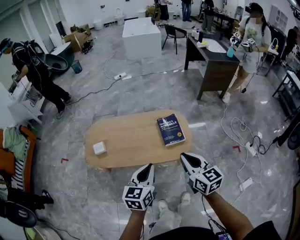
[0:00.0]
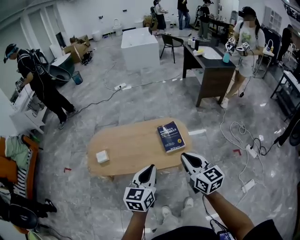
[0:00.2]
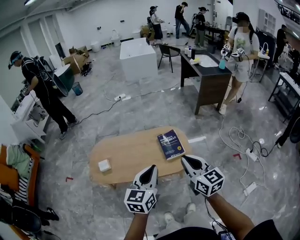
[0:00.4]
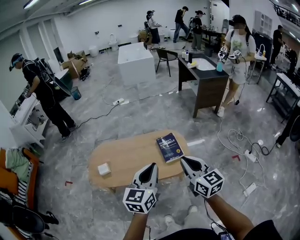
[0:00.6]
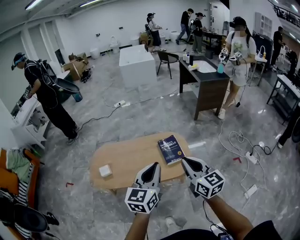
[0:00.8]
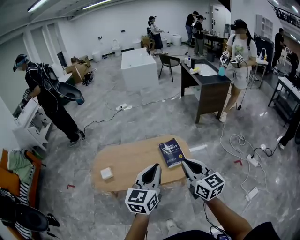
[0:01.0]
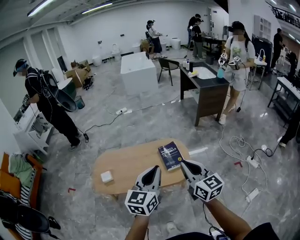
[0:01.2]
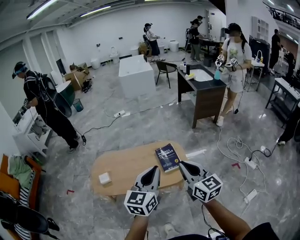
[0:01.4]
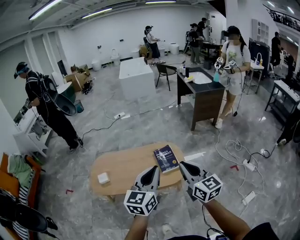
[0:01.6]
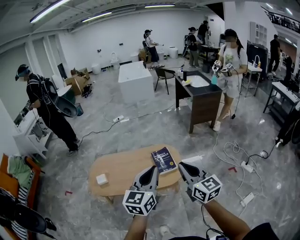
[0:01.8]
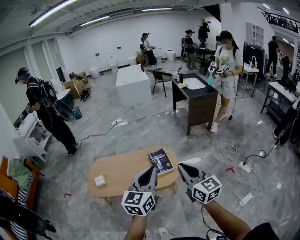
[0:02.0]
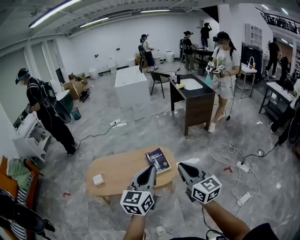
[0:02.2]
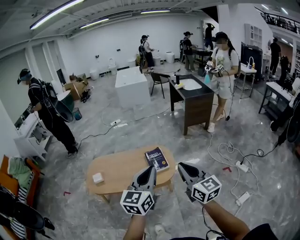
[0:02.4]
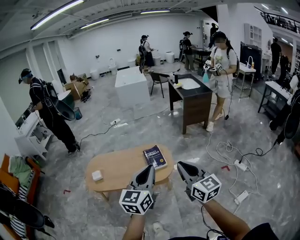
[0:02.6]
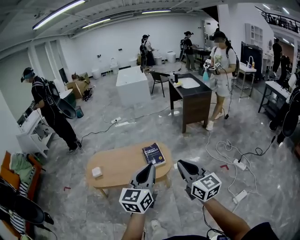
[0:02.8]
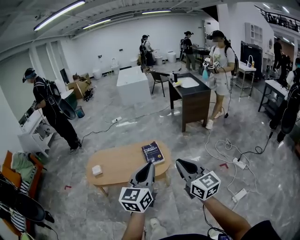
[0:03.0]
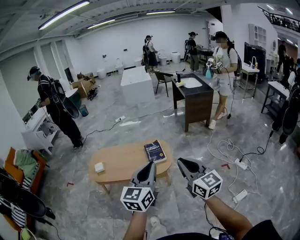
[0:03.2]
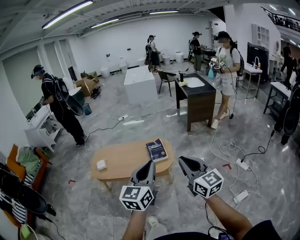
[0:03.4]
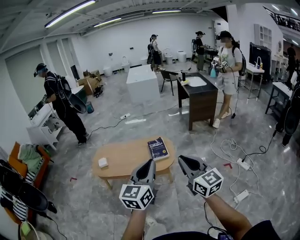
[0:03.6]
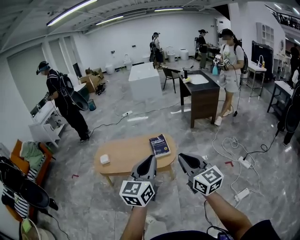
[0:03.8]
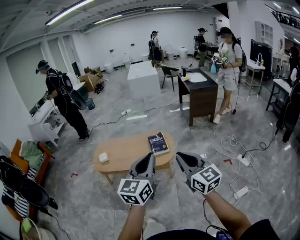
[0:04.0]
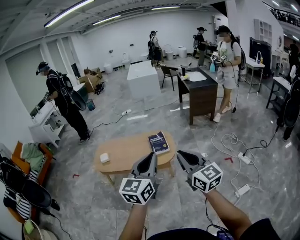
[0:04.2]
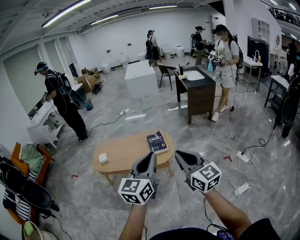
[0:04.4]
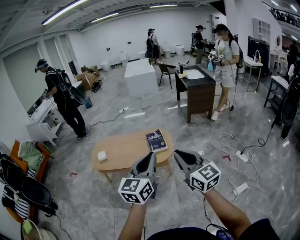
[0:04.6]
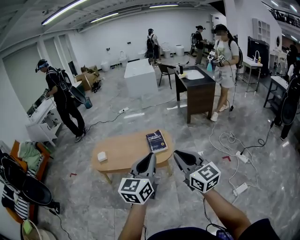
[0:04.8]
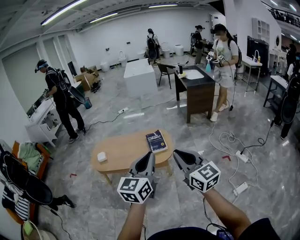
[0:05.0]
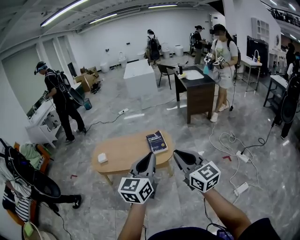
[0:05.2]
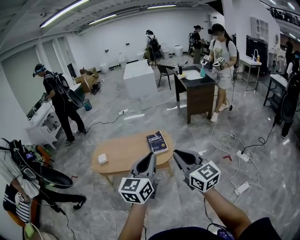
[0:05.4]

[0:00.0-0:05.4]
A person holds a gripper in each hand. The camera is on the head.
0:00.0 to 0:01.4: Both grippers move upward, roughly 15 cm.
0:01.4 to 0:02.8: The grippers both shift backward and to the right by approximately 20 cm.
0:02.8 to 0:04.0: Both grippers travel together backward, about 10 cm.
0:04.0 to 0:05.4: The grippers make only small movements.

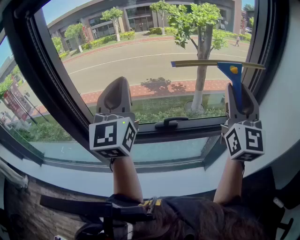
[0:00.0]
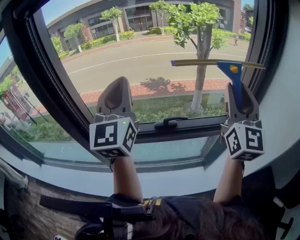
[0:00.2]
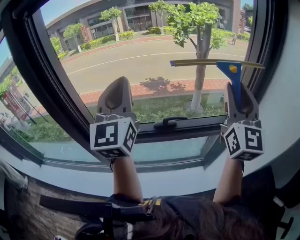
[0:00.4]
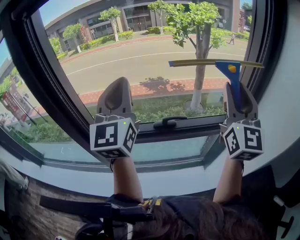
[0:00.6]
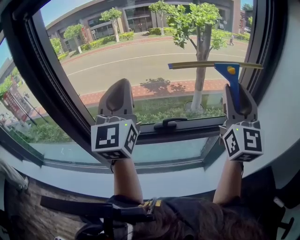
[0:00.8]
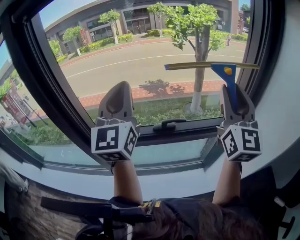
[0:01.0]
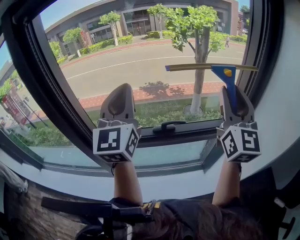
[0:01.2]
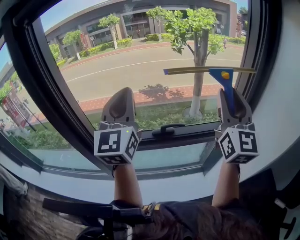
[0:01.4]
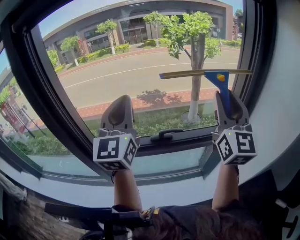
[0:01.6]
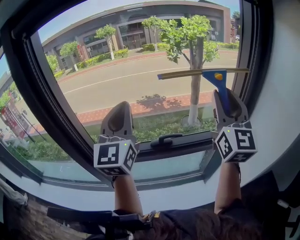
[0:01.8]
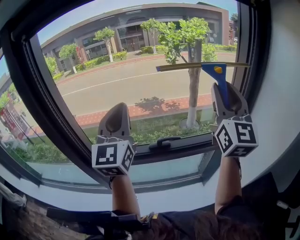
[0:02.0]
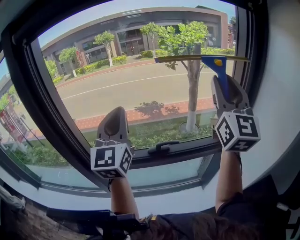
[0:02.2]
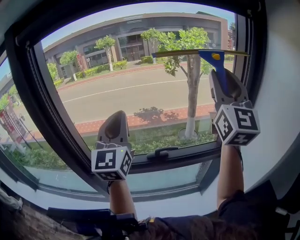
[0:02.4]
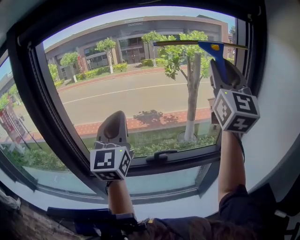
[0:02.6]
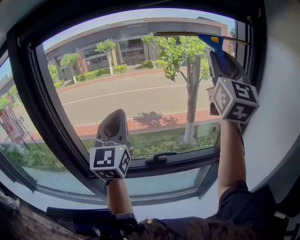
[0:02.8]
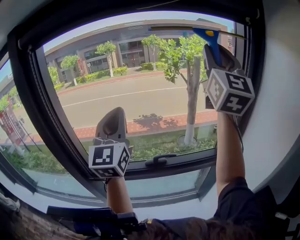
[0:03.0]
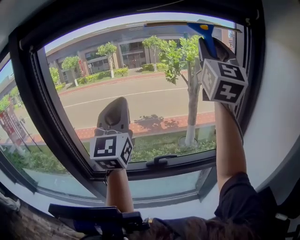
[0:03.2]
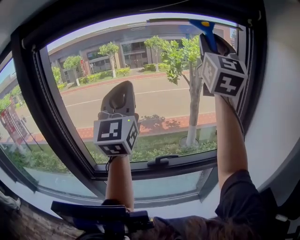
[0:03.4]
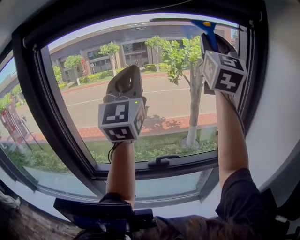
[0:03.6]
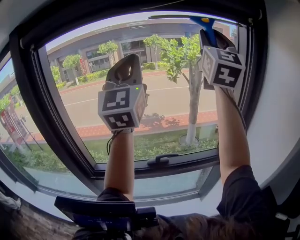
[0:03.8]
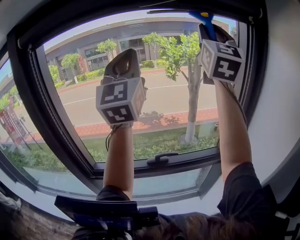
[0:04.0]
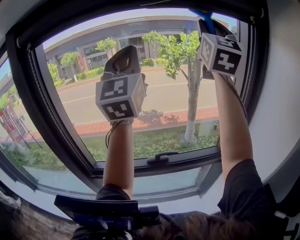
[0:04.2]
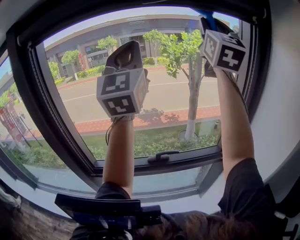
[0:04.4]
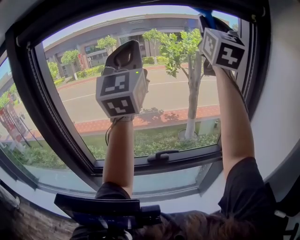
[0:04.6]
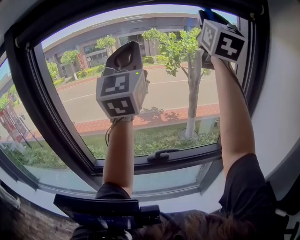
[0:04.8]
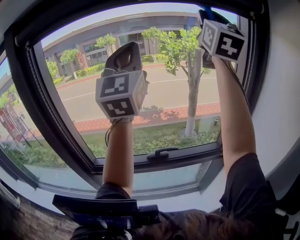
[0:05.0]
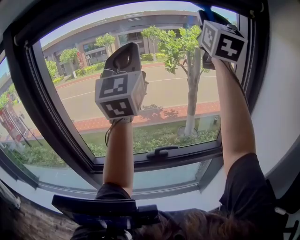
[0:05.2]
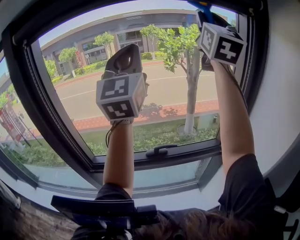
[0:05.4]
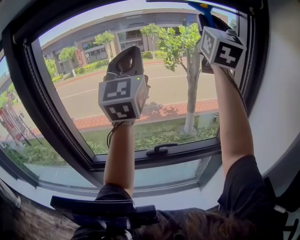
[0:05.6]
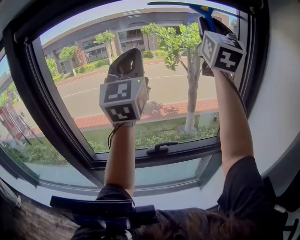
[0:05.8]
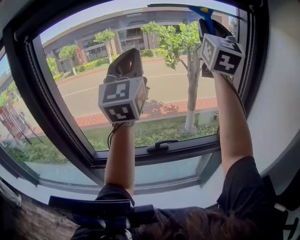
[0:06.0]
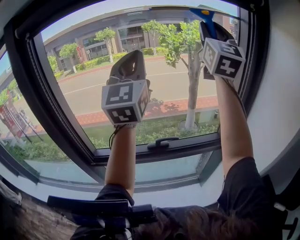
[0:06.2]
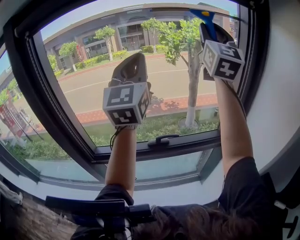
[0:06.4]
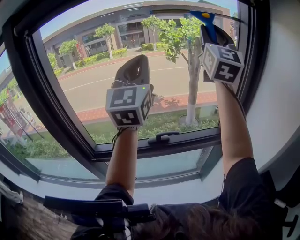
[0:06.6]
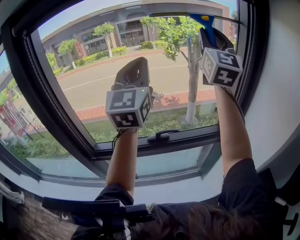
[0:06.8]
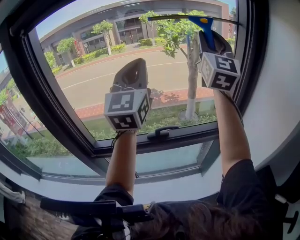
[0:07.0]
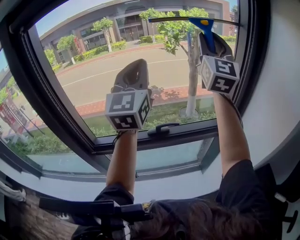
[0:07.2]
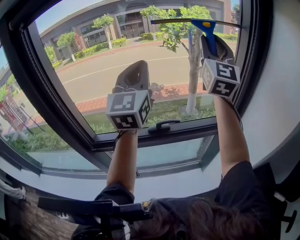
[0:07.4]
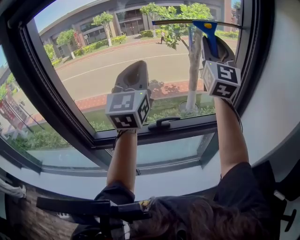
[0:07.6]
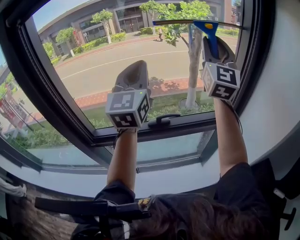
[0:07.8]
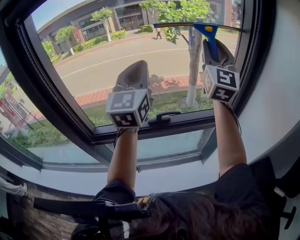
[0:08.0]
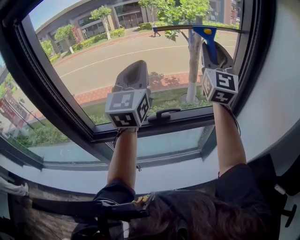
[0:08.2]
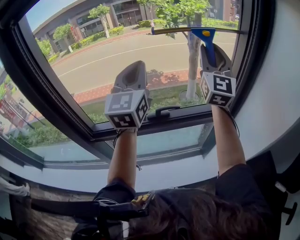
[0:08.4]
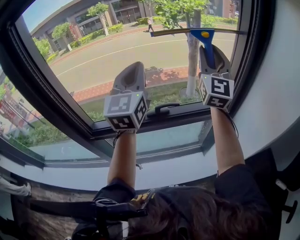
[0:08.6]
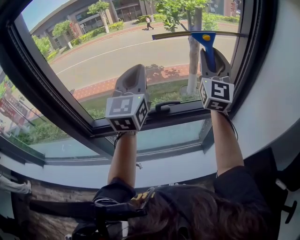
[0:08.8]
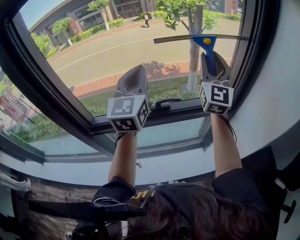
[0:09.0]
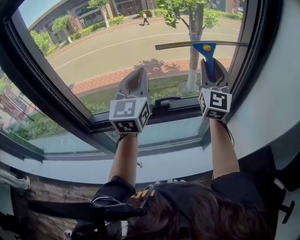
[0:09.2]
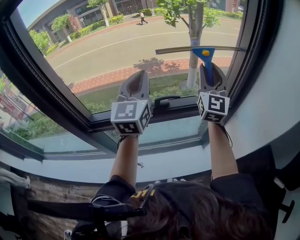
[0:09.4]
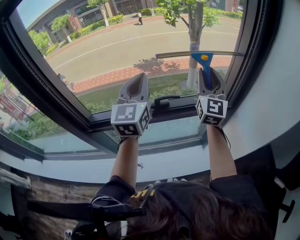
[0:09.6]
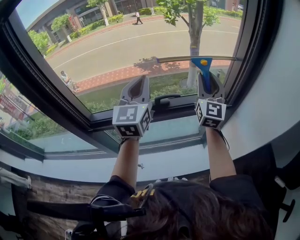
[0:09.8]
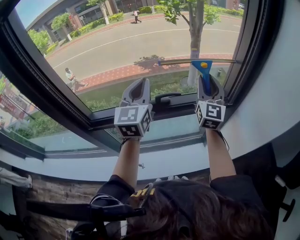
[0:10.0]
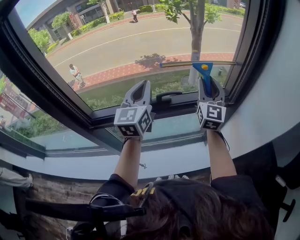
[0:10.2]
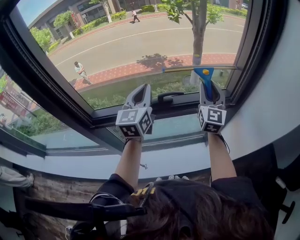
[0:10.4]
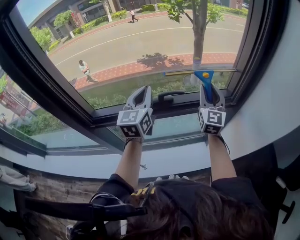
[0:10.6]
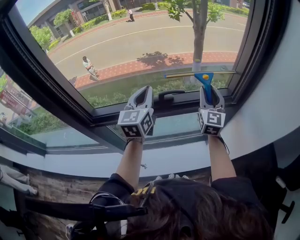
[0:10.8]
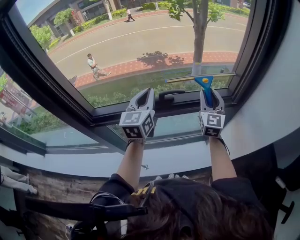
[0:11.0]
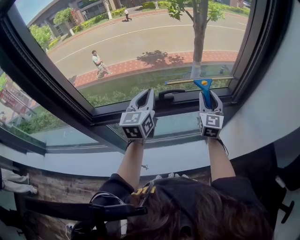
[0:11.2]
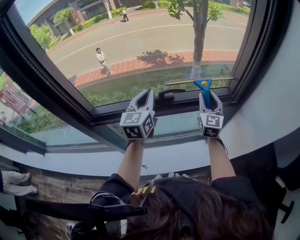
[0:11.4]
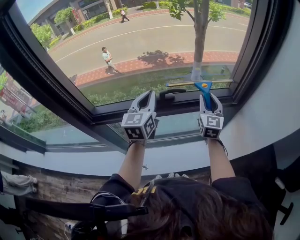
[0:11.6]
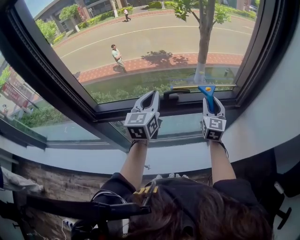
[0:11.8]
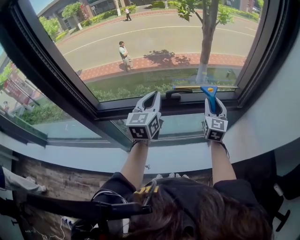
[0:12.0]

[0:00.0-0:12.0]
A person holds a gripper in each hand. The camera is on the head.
0:00.0 to 0:01.6: The grippers make only small movements.
0:01.6 to 0:03.0: The left gripper moves some 5 cm. Meanwhile the right gripper goes some 20 cm upward.
0:03.0 to 0:04.4: The left gripper shifts roughly 15 cm upward; the right gripper goes some 5 cm upward.
0:04.4 to 0:06.0: The left gripper goes approximately 5 cm downward.
0:06.0 to 0:07.6: The grippers both shift downward by some 15 cm.
0:07.6 to 0:09.0: The left gripper shifts approximately 10 cm downward; the right gripper shifts roughly 15 cm downward.
0:09.0 to 0:10.4: Both grippers travel together downward, some 15 cm.
0:10.4 to 0:12.0: The right gripper is displaced downward by approximately 10 cm, while the left gripper heads downward, covering some 5 cm.

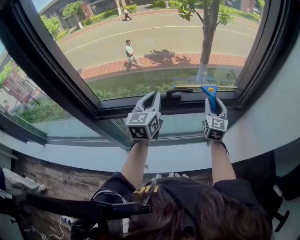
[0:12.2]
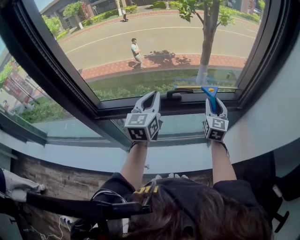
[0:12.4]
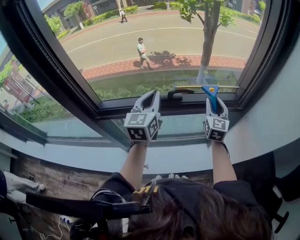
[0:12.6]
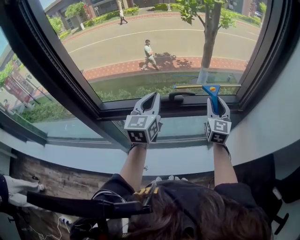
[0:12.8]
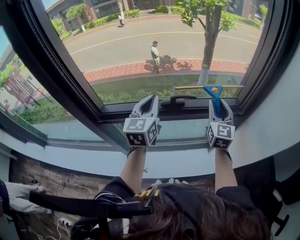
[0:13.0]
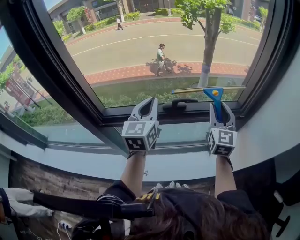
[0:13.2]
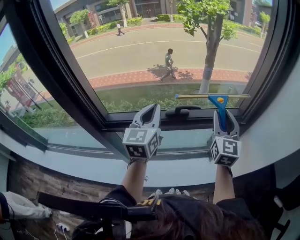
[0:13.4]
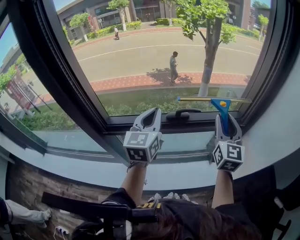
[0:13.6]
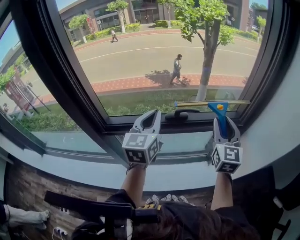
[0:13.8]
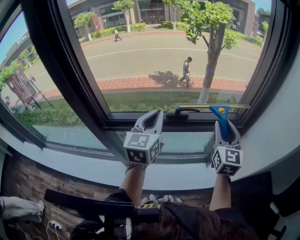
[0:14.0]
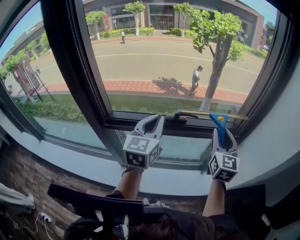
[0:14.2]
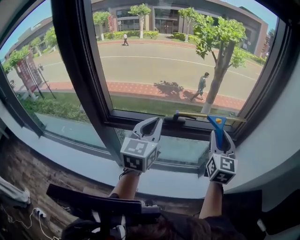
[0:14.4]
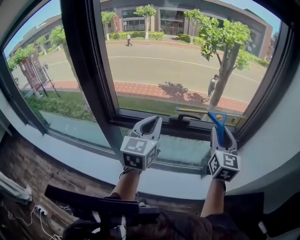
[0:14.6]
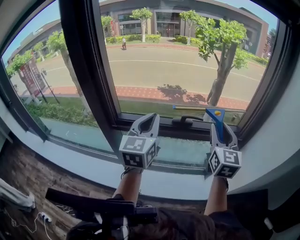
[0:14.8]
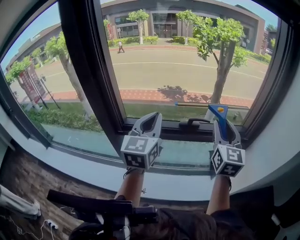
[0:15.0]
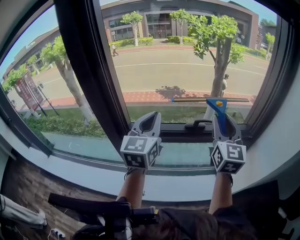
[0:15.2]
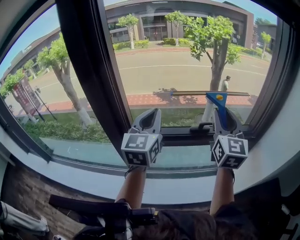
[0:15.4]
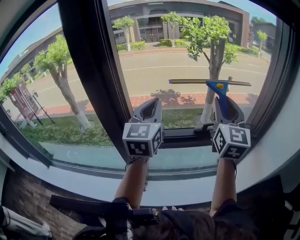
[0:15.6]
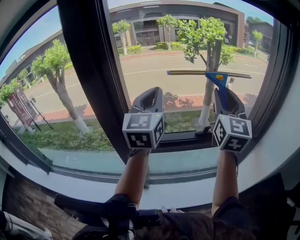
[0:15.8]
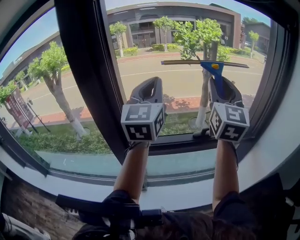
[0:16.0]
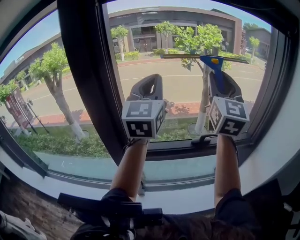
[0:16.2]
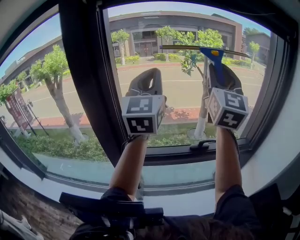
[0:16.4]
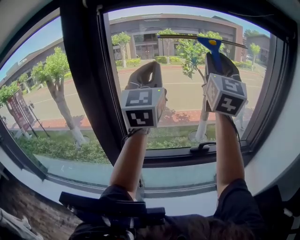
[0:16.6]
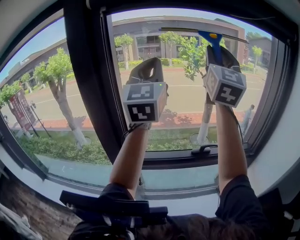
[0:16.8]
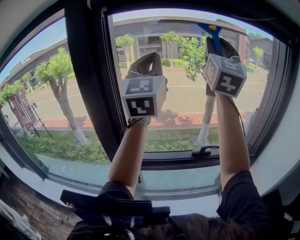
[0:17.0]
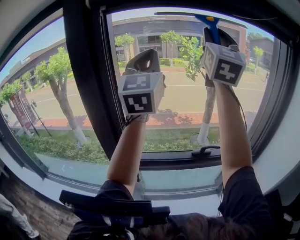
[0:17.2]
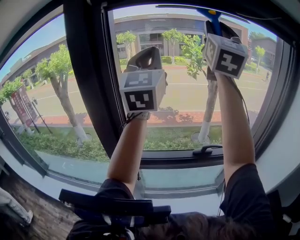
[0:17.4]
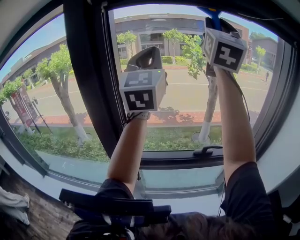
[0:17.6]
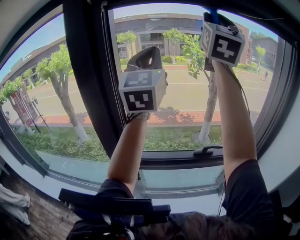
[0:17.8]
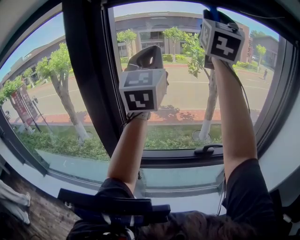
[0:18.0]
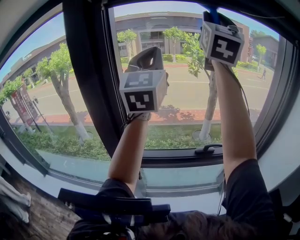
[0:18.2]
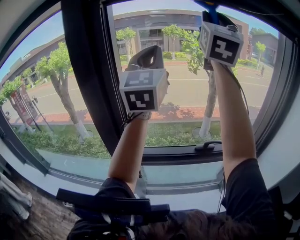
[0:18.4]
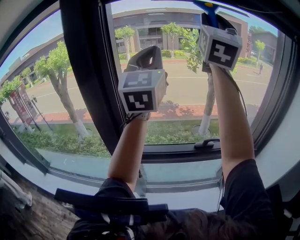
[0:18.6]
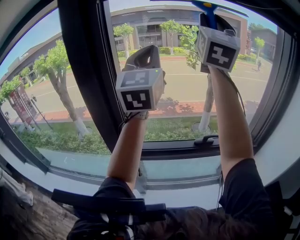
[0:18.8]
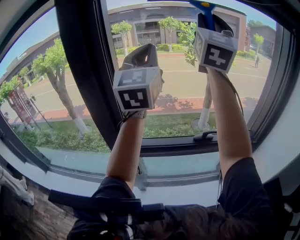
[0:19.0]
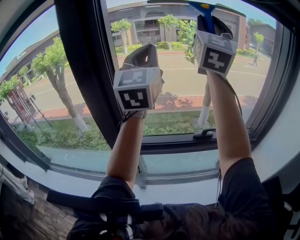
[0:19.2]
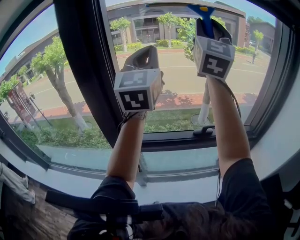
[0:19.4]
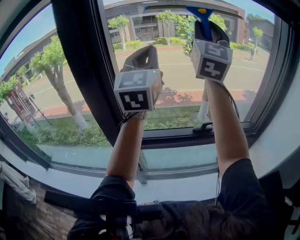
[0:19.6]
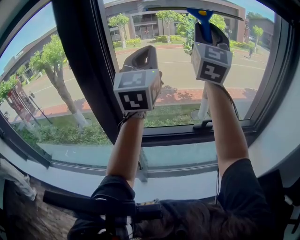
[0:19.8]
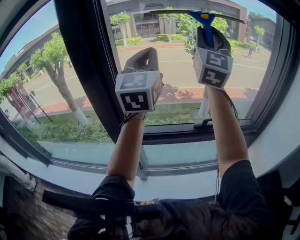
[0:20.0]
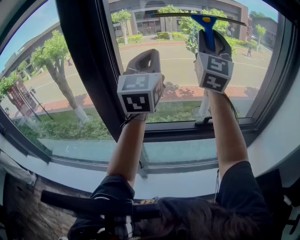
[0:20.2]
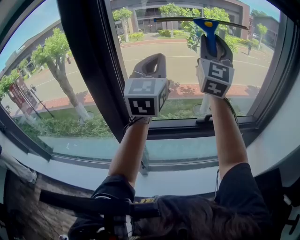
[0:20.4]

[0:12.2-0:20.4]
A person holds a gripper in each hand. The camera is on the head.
0:12.2 to 0:13.8: The right gripper shifts approximately 15 cm upward and backward. Meanwhile the left gripper goes roughly 10 cm upward and backward.
0:13.8 to 0:15.4: The grippers both shift to the left and upward by some 15 cm.
0:15.4 to 0:17.2: The two grippers go about 30 cm upward. The right gripper changes its angle by some 30 degrees. Meanwhile the left gripper rotates approximately 30 degrees.
0:17.2 to 0:18.8: The grippers move only a little.
0:18.8 to 0:20.4: The two grippers go some 10 cm downward.
